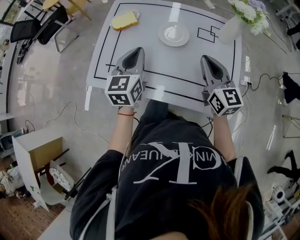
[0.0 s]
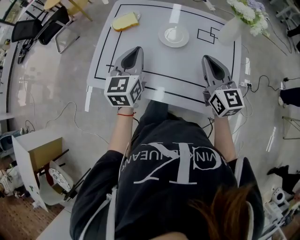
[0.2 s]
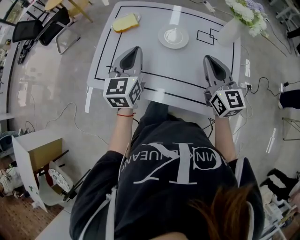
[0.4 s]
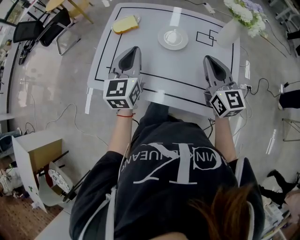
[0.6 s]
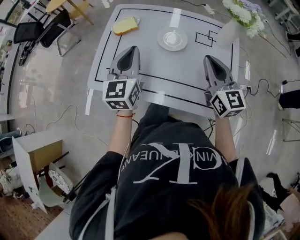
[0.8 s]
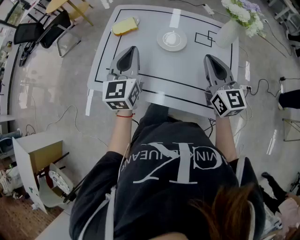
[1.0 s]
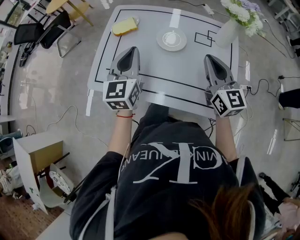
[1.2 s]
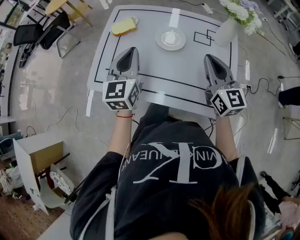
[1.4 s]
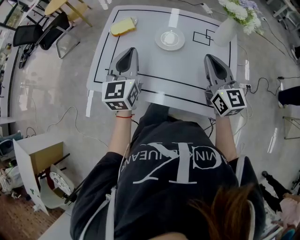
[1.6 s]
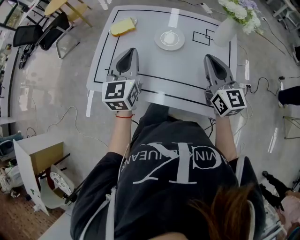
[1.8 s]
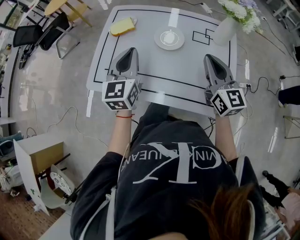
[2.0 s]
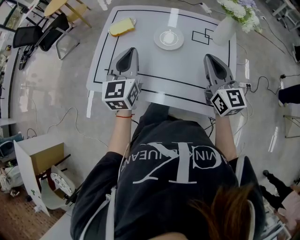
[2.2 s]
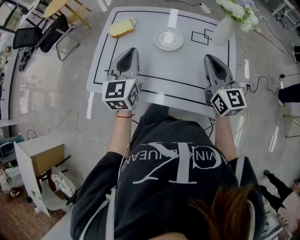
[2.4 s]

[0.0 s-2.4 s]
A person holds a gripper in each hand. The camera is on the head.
0.0 to 2.4 s: The grippers make only small movements.

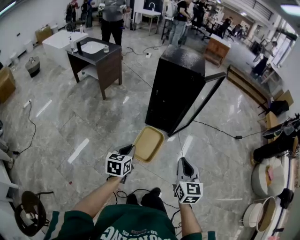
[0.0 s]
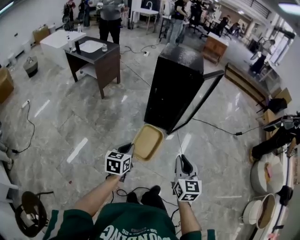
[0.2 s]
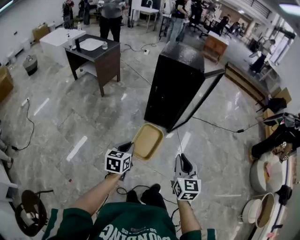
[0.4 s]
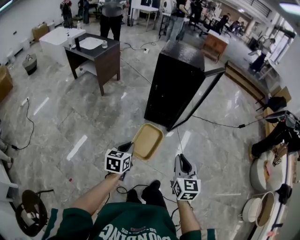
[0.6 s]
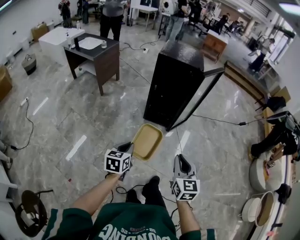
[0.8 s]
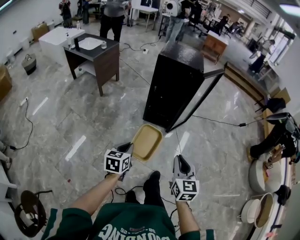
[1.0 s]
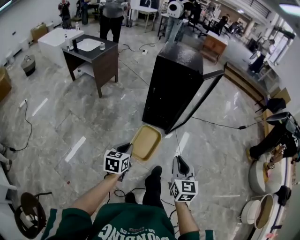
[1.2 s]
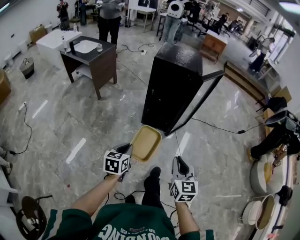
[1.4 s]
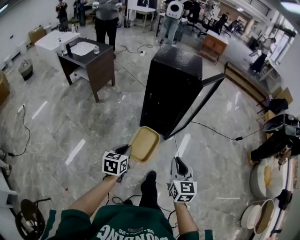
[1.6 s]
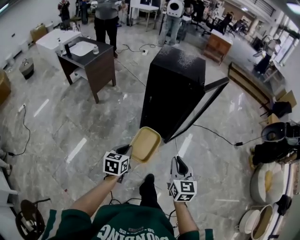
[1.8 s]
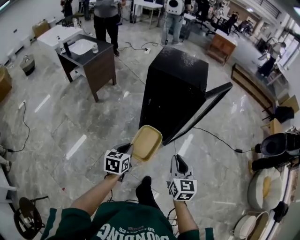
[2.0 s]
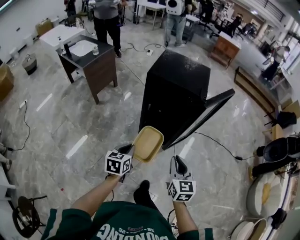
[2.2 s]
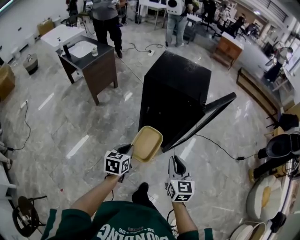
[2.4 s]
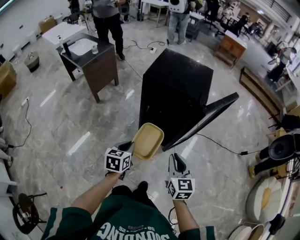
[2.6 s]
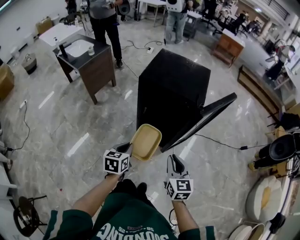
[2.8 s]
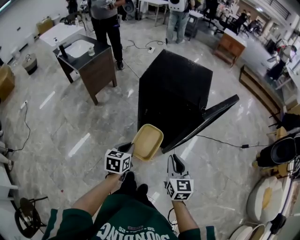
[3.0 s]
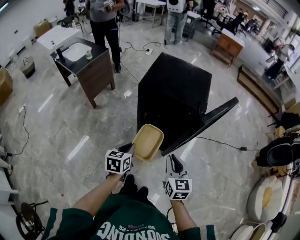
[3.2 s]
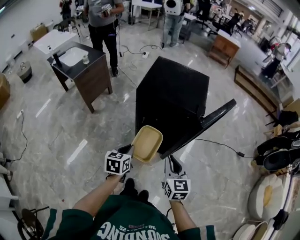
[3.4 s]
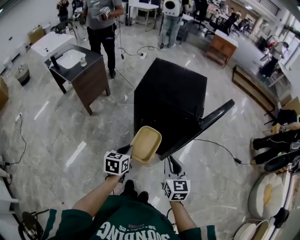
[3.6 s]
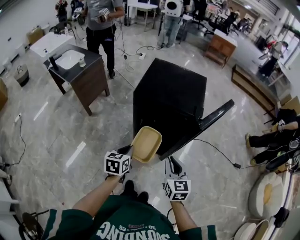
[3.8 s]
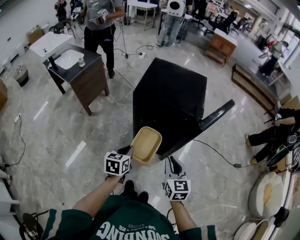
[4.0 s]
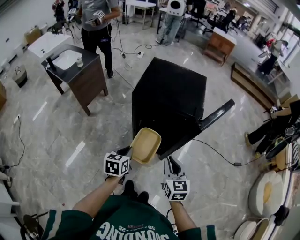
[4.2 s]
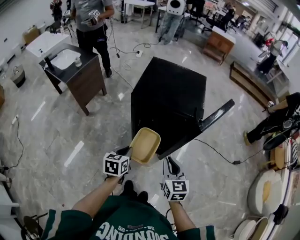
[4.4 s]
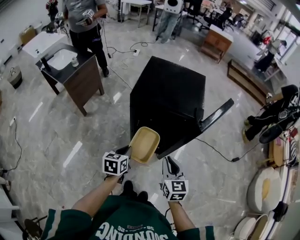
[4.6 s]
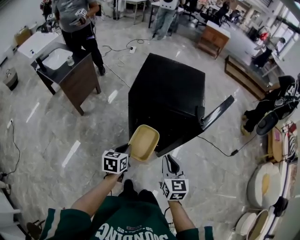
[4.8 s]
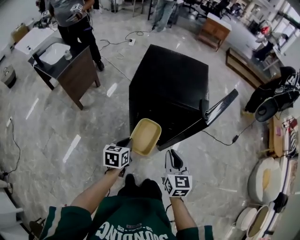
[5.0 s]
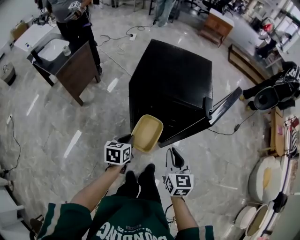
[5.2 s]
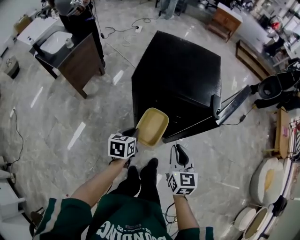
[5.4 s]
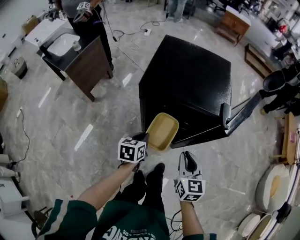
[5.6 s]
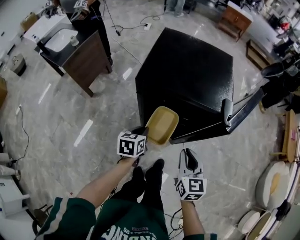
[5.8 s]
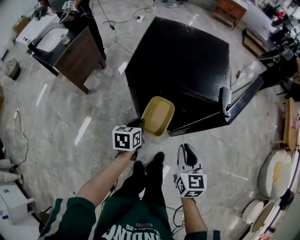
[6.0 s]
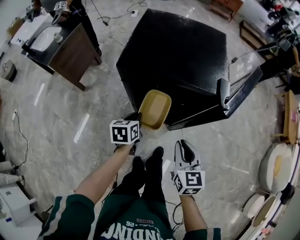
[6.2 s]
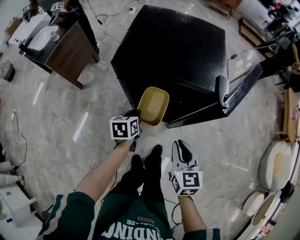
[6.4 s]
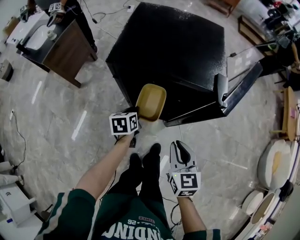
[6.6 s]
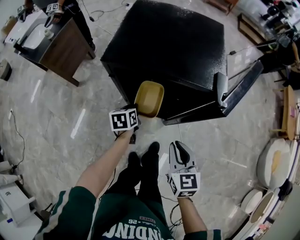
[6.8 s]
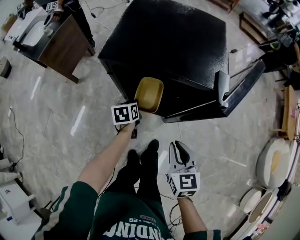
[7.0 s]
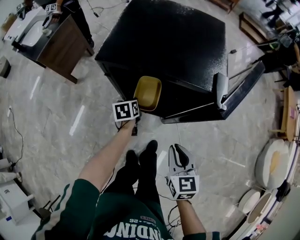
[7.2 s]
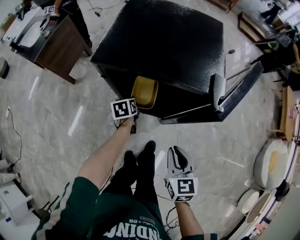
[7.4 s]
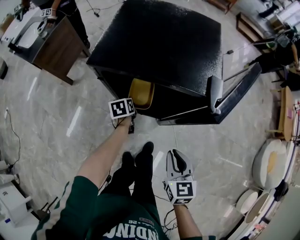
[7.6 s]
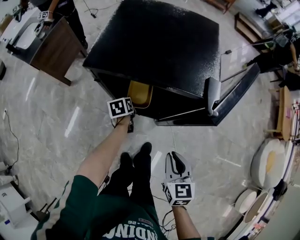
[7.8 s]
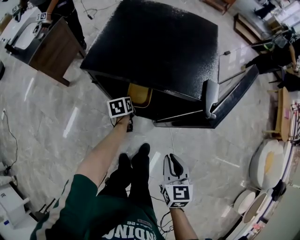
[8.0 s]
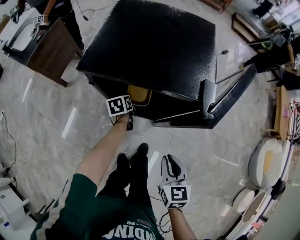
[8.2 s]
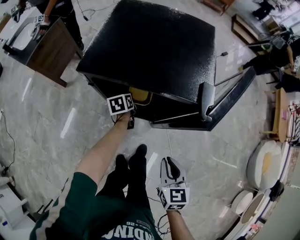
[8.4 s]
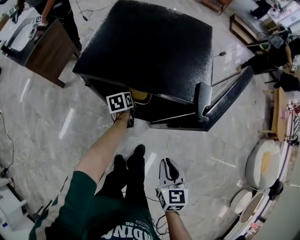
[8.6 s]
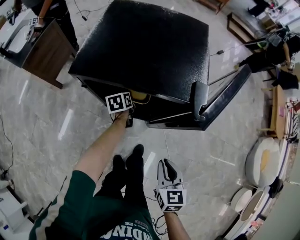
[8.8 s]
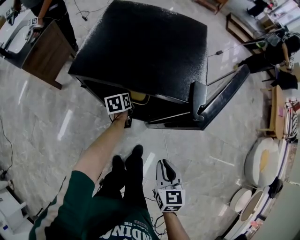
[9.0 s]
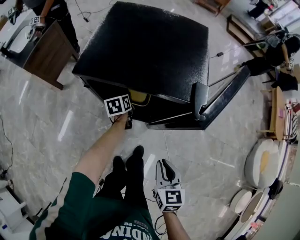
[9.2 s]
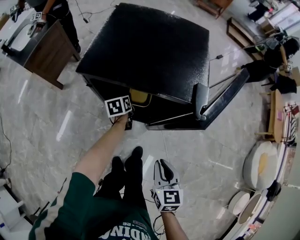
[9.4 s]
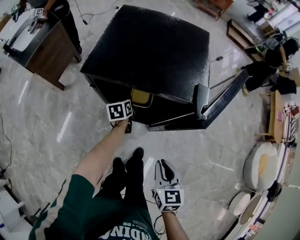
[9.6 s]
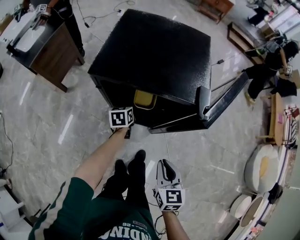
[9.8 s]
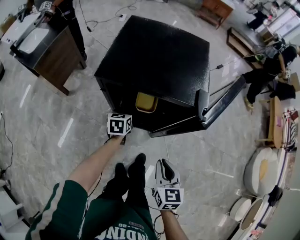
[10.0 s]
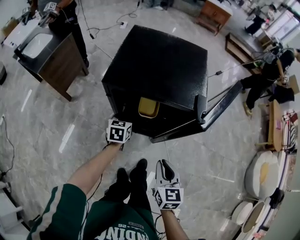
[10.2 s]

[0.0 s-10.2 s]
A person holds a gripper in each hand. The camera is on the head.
0.0 to 1.4 s: The grippers stay close to where they were, moving slightly.
1.4 to 3.0 s: Both grippers move forward, roughly 35 cm.
3.0 to 4.4 s: The two grippers go approximately 5 cm forward.
4.4 to 5.8 s: The left gripper goes some 15 cm forward and downward, while the right gripper travels forward and downward by some 10 cm.
5.8 to 7.2 s: The left gripper is displaced downward and forward by about 15 cm; the right gripper goes some 5 cm downward.
7.2 to 8.8 s: The left gripper heads forward and to the right, covering roughly 10 cm.
8.8 to 10.2 s: The left gripper is displaced upward and backward by approximately 10 cm, and swivels about 30 degrees, while the right gripper is displaced to the left by some 5 cm.

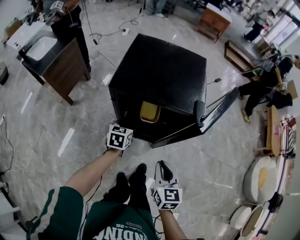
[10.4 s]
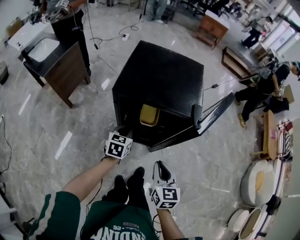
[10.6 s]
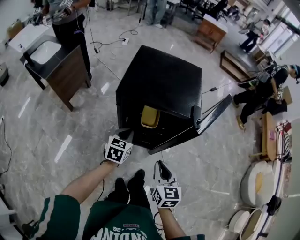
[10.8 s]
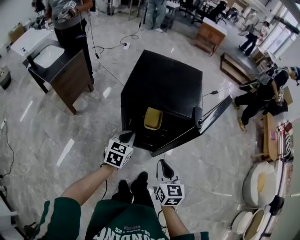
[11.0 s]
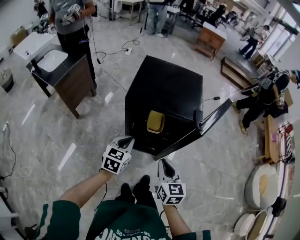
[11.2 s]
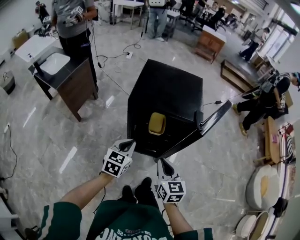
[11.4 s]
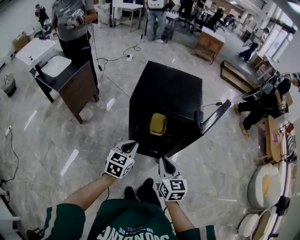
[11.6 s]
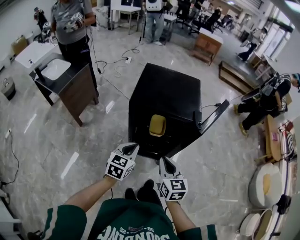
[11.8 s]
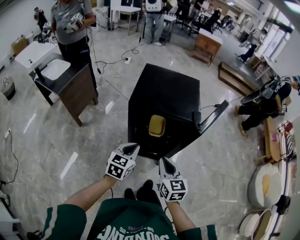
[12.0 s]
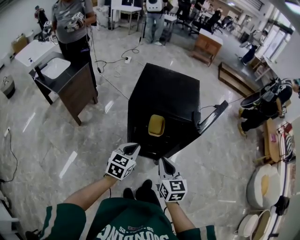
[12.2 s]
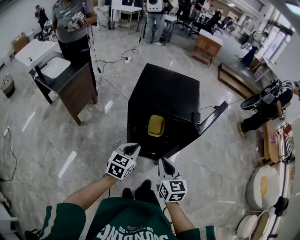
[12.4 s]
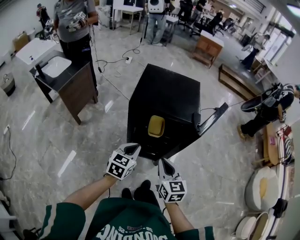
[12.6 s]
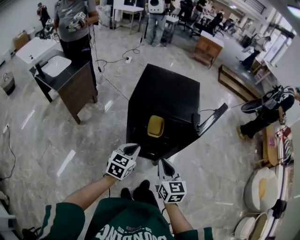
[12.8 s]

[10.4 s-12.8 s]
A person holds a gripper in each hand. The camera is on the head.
10.4 to 11.6 s: The right gripper travels upward and to the left by approximately 10 cm, while the left gripper shifts some 20 cm upward and backward.
11.6 to 12.8 s: The grippers make only small movements.

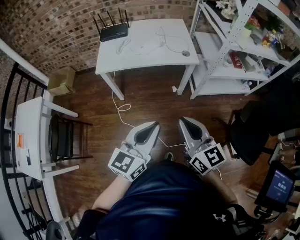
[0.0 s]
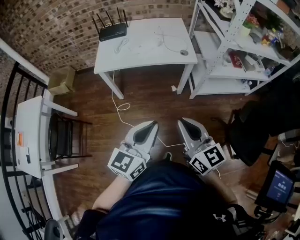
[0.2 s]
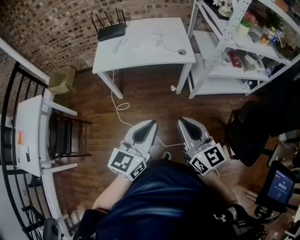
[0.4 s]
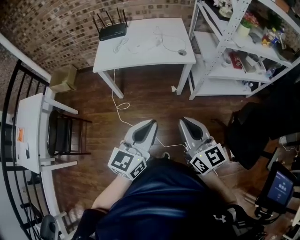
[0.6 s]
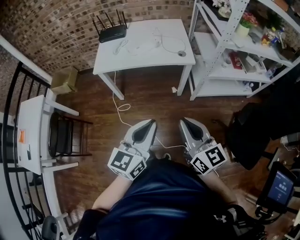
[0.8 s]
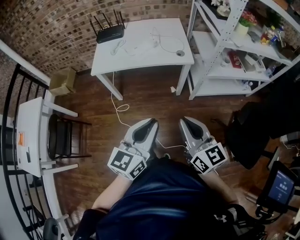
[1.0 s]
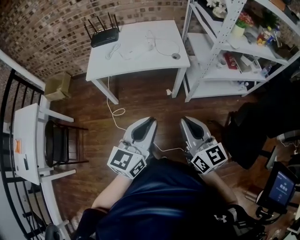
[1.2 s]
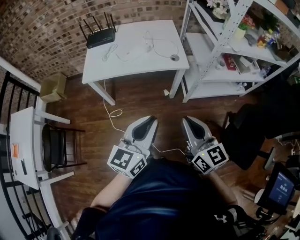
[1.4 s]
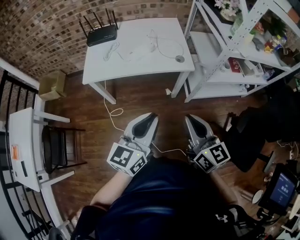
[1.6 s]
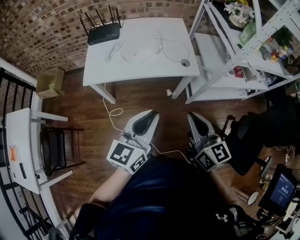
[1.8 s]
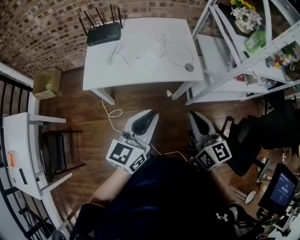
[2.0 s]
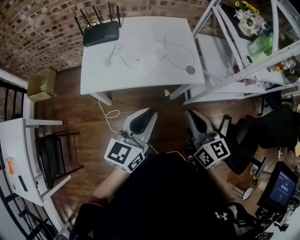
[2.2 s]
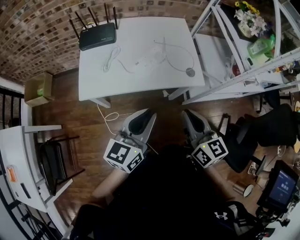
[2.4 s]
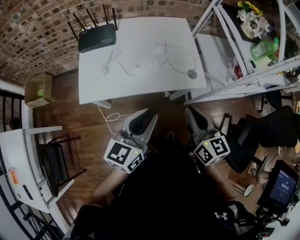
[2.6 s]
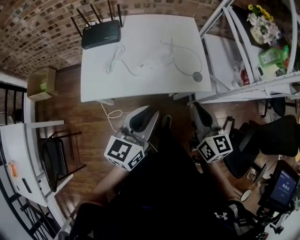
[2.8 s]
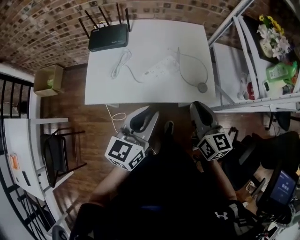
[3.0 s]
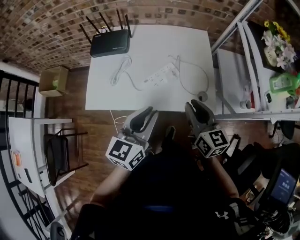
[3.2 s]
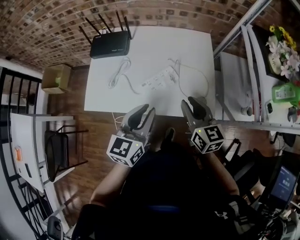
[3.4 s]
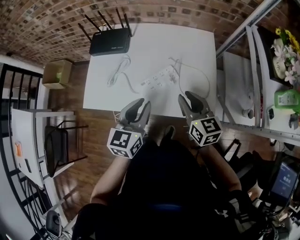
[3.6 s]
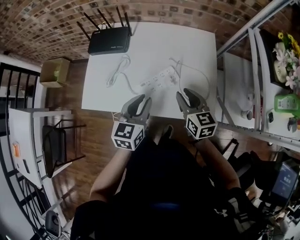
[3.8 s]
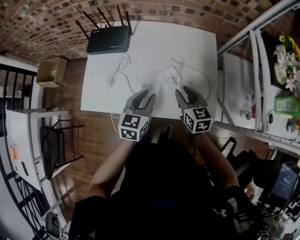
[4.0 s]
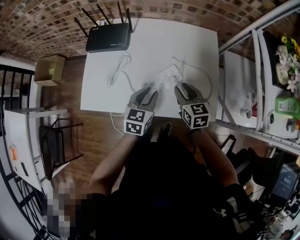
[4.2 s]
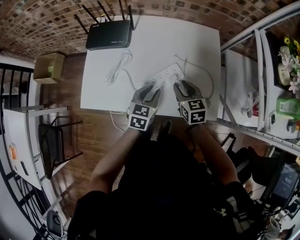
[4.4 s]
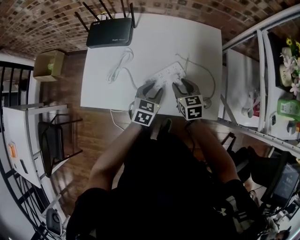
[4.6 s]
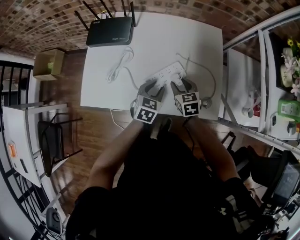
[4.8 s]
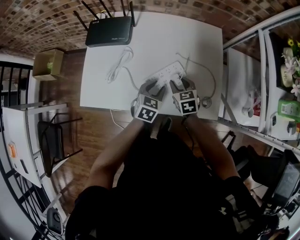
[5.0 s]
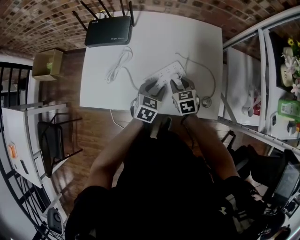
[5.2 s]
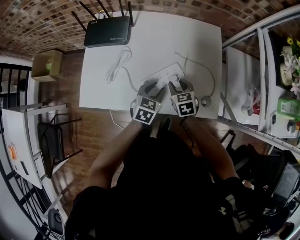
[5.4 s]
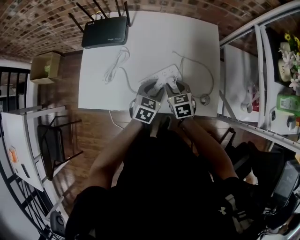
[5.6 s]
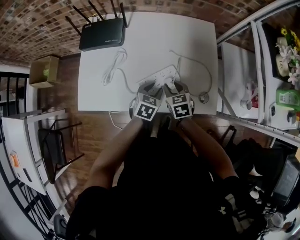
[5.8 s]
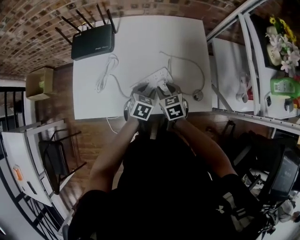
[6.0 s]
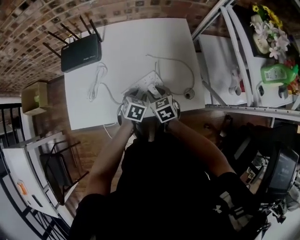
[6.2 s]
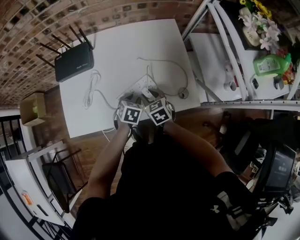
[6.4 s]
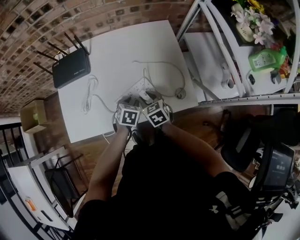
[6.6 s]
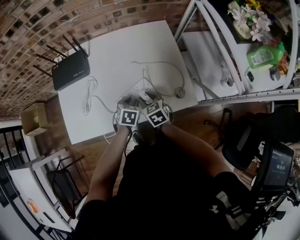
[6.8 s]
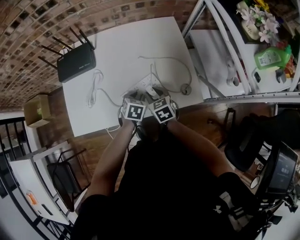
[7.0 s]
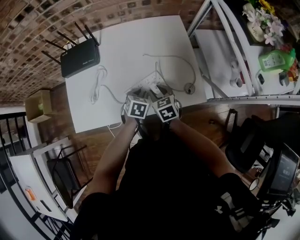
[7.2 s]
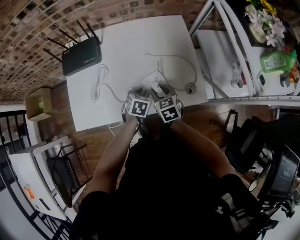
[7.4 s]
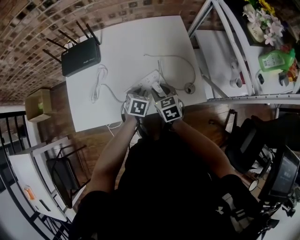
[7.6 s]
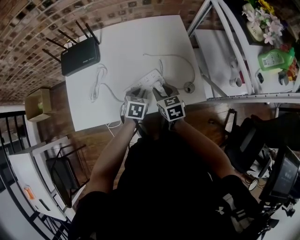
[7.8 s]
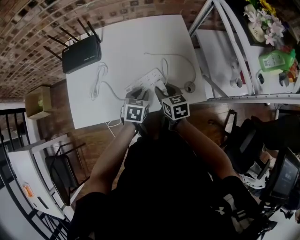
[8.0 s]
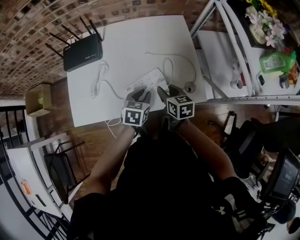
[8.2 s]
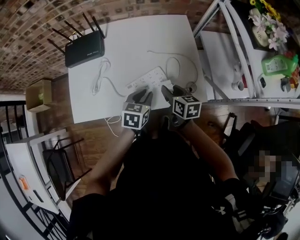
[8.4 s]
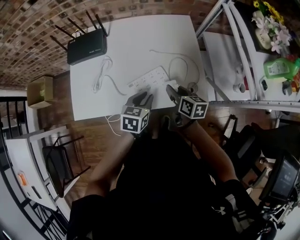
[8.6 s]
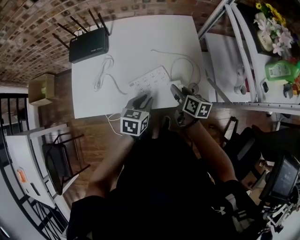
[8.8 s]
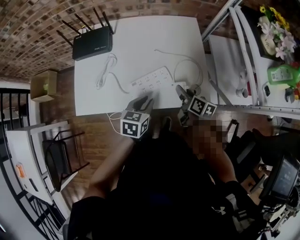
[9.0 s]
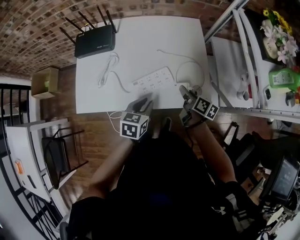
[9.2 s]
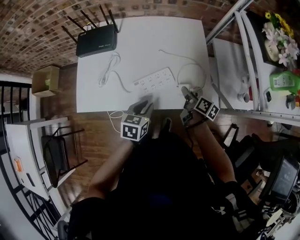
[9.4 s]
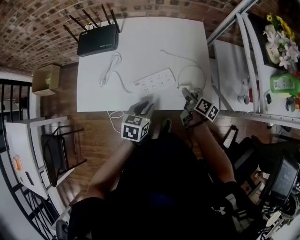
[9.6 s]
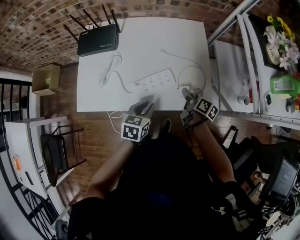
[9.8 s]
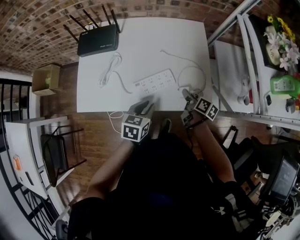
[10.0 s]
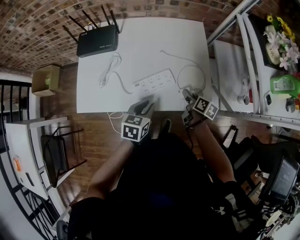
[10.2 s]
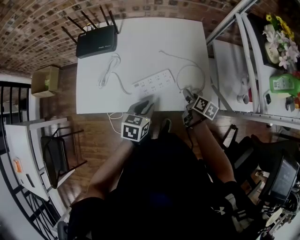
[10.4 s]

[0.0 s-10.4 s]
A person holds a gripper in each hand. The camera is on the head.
0.0 to 1.4 s: The left gripper goes roughly 10 cm forward and to the right; the right gripper heads to the right and forward, covering roughly 10 cm.
1.4 to 3.0 s: The left gripper travels forward and to the left by approximately 35 cm; the right gripper is displaced forward by approximately 35 cm.
3.0 to 4.4 s: The right gripper moves forward and downward, roughly 25 cm, rotates approximately 30 degrees, and opens. The left gripper goes roughly 25 cm downward and forward, and changes its angle by about 30 degrees.
4.4 to 6.0 s: The two grippers go about 5 cm downward. The left gripper rotates roughly 20 degrees.
6.0 to 7.4 s: The grippers make only small movements.
7.4 to 9.0 s: The left gripper heads upward and backward, covering some 15 cm, and swivels about 20 degrees. The right gripper is displaced to the right by about 10 cm, and twists some 50 degrees clockwise, seen from behind.
9.0 to 10.4 s: The right gripper travels downward by some 5 cm.
